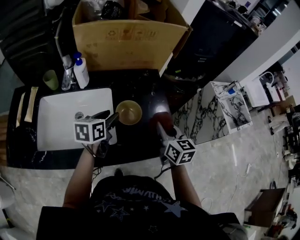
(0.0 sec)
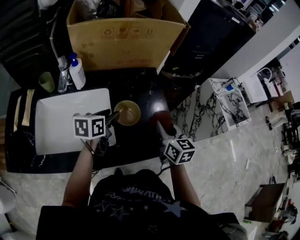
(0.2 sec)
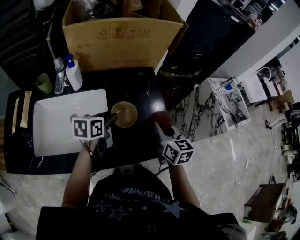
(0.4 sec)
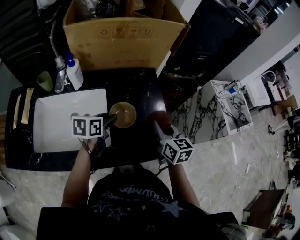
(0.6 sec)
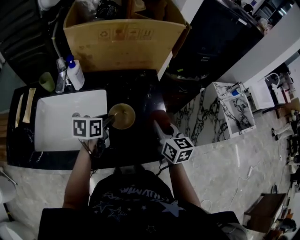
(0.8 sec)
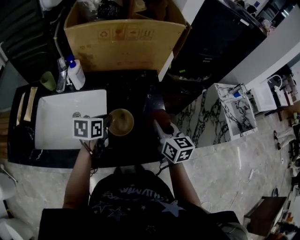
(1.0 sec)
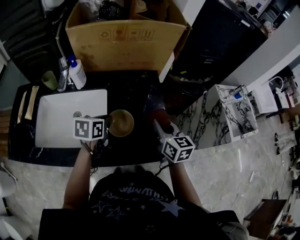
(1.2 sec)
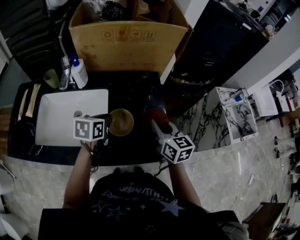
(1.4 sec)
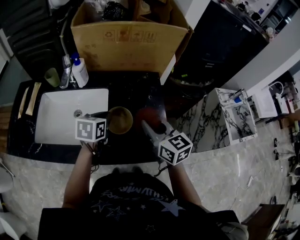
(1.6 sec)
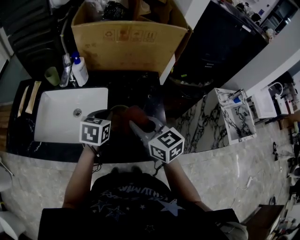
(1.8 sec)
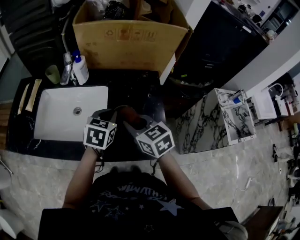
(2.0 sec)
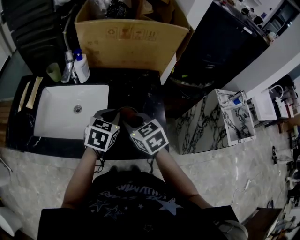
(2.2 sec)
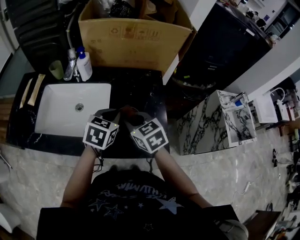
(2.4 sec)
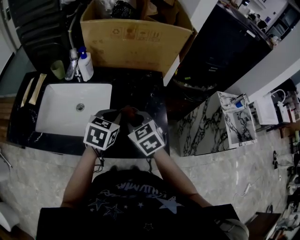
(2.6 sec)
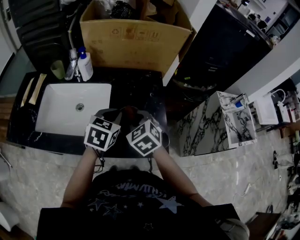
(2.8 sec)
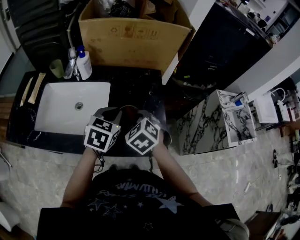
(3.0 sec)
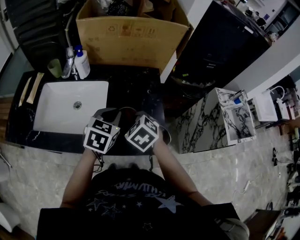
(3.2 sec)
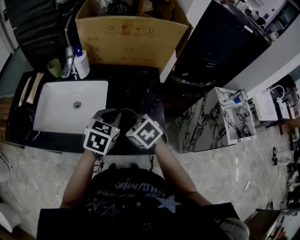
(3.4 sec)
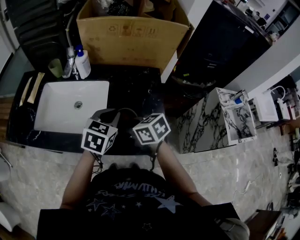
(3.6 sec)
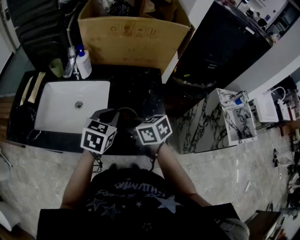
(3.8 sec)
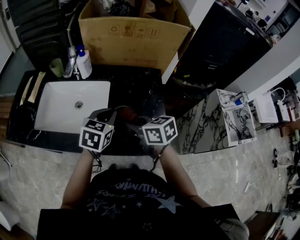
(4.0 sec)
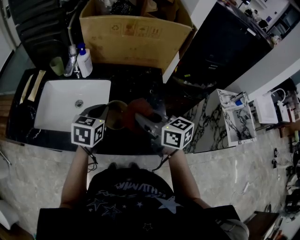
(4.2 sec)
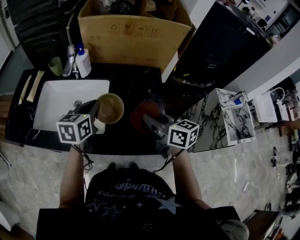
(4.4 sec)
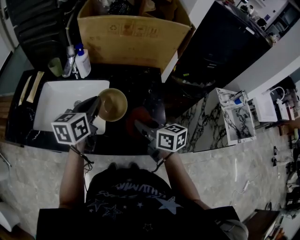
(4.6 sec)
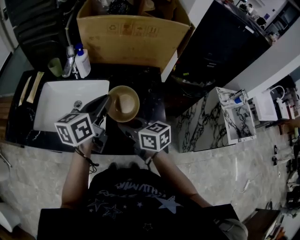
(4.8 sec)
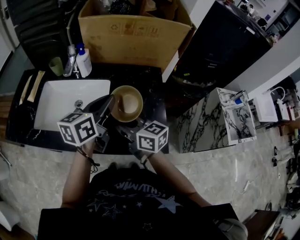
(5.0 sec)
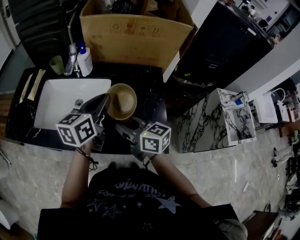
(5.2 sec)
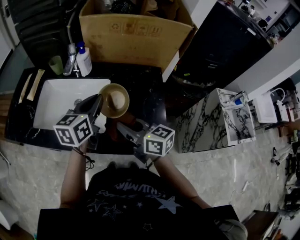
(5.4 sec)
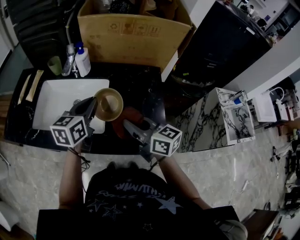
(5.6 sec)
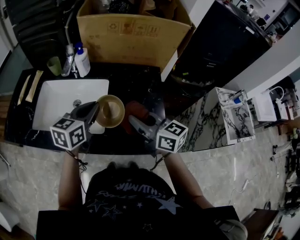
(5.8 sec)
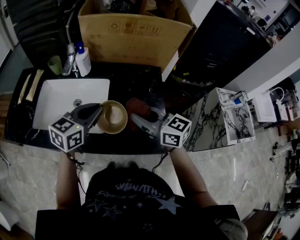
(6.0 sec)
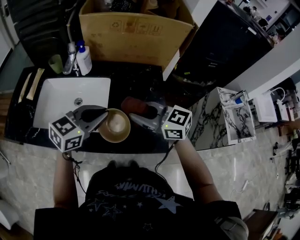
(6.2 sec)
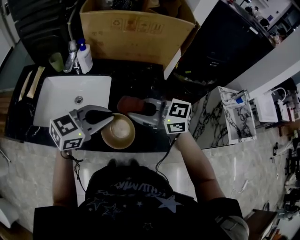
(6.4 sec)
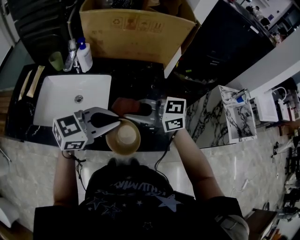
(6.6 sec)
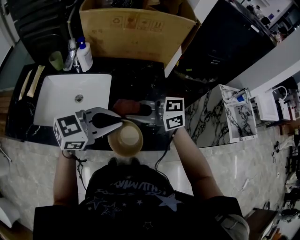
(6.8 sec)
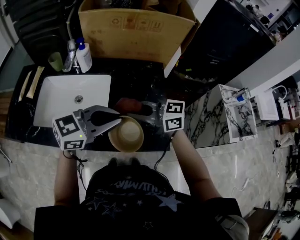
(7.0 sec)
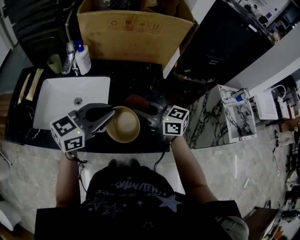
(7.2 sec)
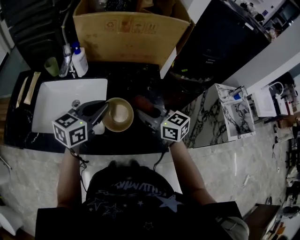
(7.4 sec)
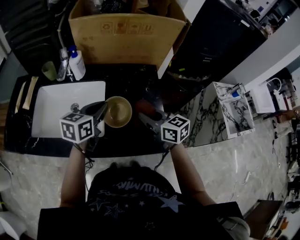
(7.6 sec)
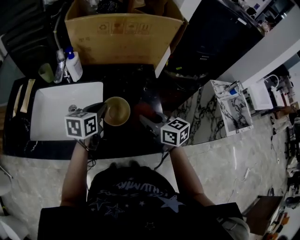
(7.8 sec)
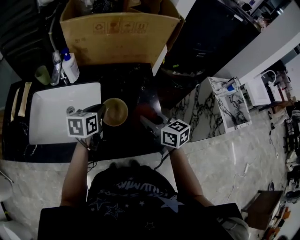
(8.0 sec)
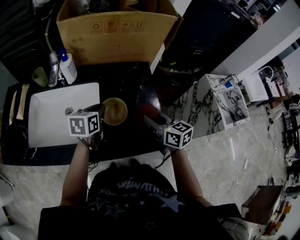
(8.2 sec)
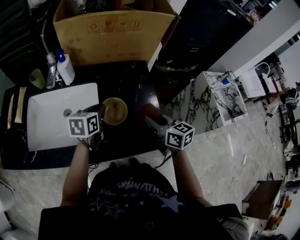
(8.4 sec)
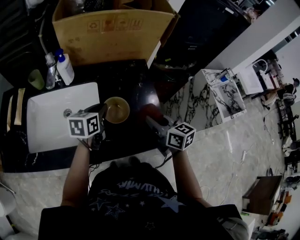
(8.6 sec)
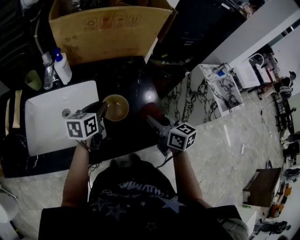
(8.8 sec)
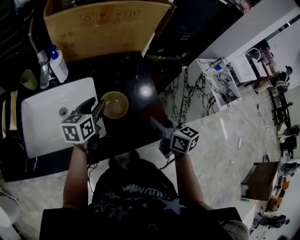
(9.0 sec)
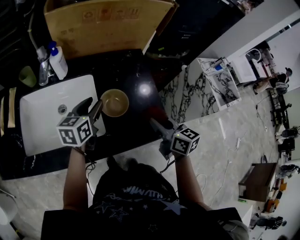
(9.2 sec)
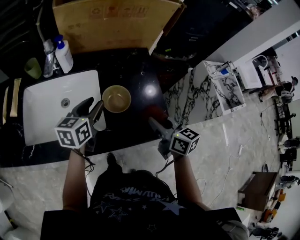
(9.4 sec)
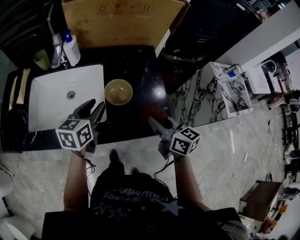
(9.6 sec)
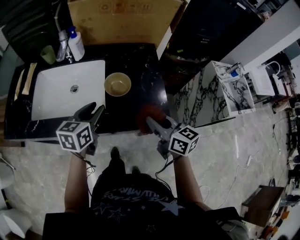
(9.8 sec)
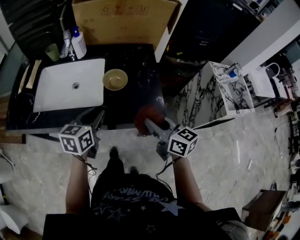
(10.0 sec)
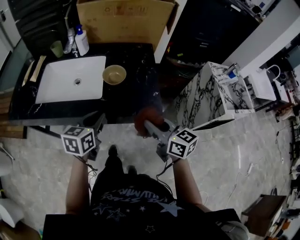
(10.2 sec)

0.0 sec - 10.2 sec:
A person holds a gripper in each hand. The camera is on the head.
0.0 sec - 1.4 sec: The left gripper closes its fingers.
1.4 sec - 3.0 sec: The left gripper heads upward, covering some 5 cm, and rotates approximately 20 degrees. The right gripper travels to the left by approximately 10 cm, and rolls counterclockwise, seen from behind, by roughly 50 degrees.
3.0 sec - 4.4 sec: The right gripper travels upward and to the right by approximately 10 cm, and tilts its fingers roughly 30 degrees upward, while the left gripper is displaced to the left by about 10 cm, and rotates roughly 20 degrees.
4.4 sec - 5.8 sec: The right gripper travels to the left by about 5 cm.
5.8 sec - 7.2 sec: The left gripper ends up approximately 10 cm from where it was, and swivels roughly 30 degrees.
7.2 sec - 8.8 sec: The right gripper moves to the right, approximately 5 cm, and turns by approximately 40 degrees, while the left gripper is displaced downward and forward by roughly 15 cm, and turns by about 30 degrees.
8.8 sec - 10.2 sec: The grippers both shift backward by approximately 20 cm. The left gripper opens, then closes once more.

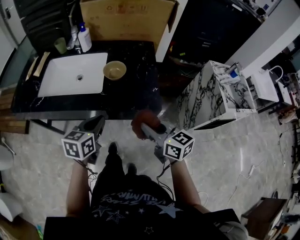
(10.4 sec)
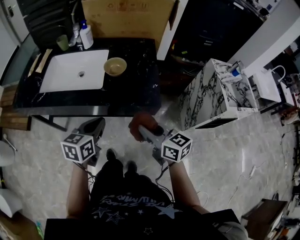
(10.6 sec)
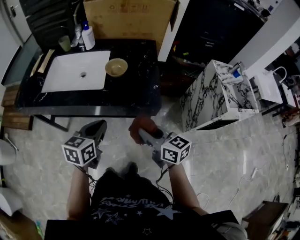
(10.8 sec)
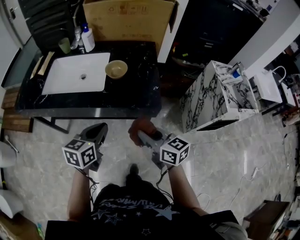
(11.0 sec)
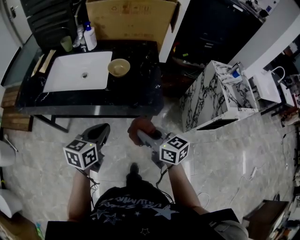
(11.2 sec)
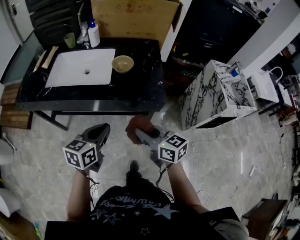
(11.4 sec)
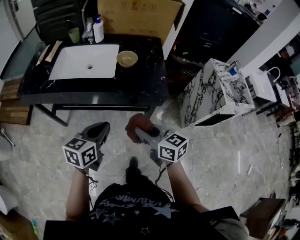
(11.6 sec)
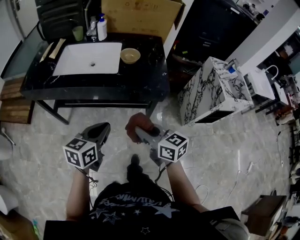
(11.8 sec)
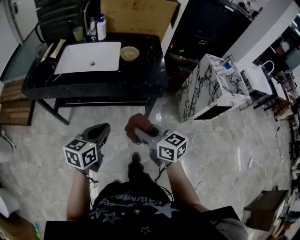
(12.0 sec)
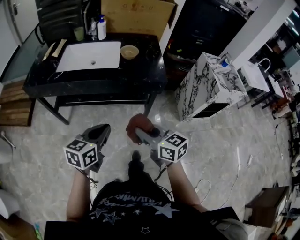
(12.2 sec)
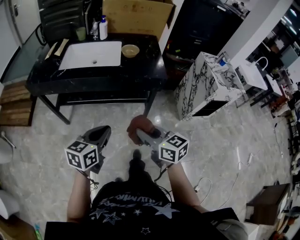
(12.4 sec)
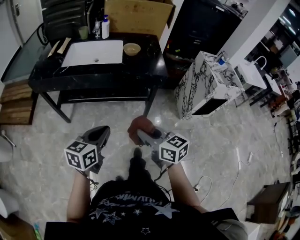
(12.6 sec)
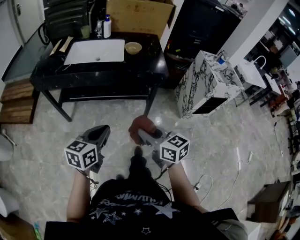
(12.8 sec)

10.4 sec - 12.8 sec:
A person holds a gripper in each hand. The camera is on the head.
10.4 sec - 11.6 sec: The left gripper goes approximately 10 cm backward. Meanwhile the right gripper is displaced backward and to the left by about 15 cm.
11.6 sec - 12.8 sec: The right gripper is displaced backward by roughly 20 cm. Meanwhile the left gripper shifts some 20 cm backward and to the left.

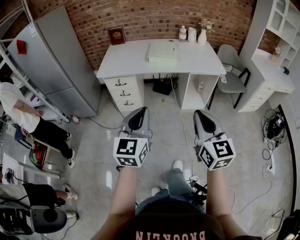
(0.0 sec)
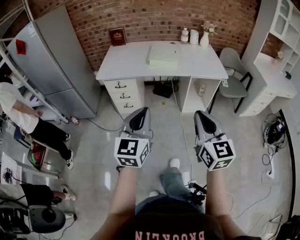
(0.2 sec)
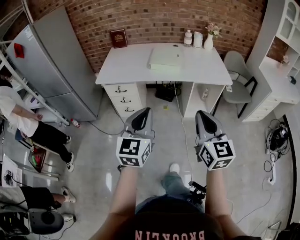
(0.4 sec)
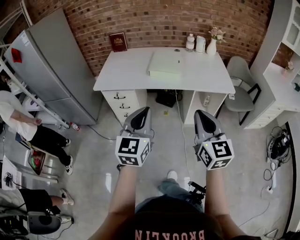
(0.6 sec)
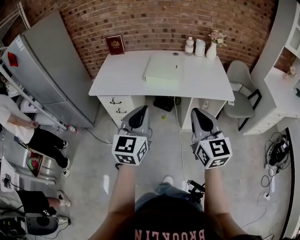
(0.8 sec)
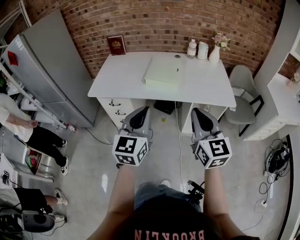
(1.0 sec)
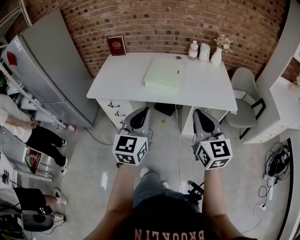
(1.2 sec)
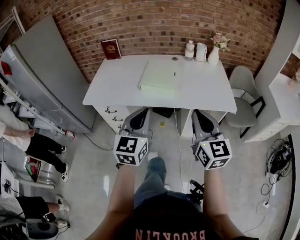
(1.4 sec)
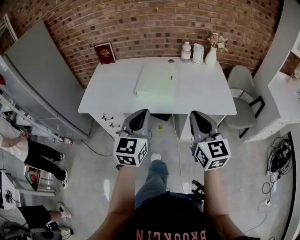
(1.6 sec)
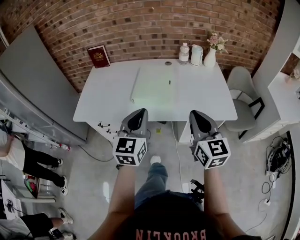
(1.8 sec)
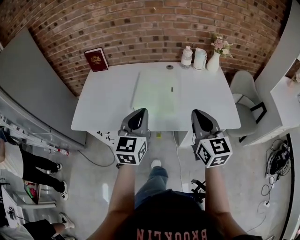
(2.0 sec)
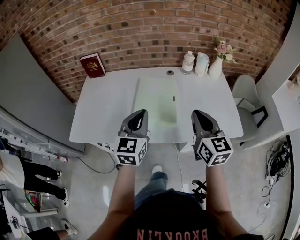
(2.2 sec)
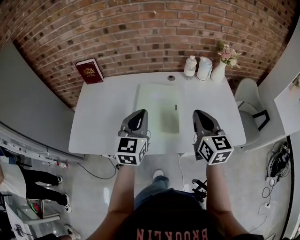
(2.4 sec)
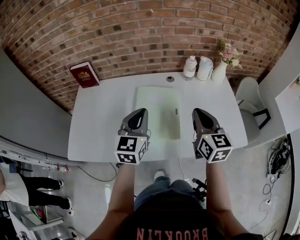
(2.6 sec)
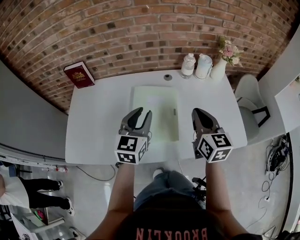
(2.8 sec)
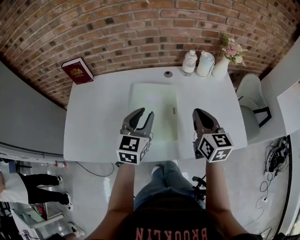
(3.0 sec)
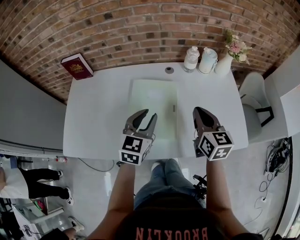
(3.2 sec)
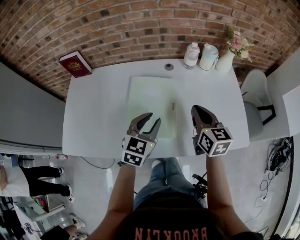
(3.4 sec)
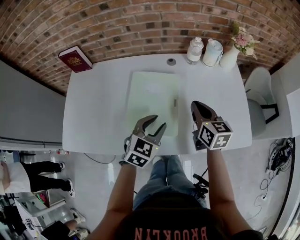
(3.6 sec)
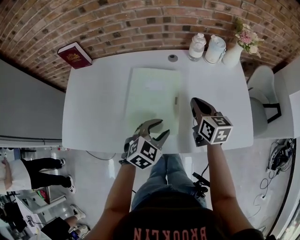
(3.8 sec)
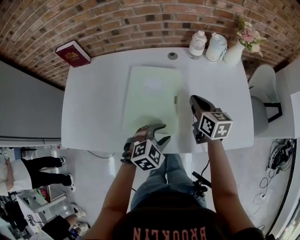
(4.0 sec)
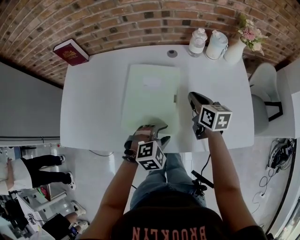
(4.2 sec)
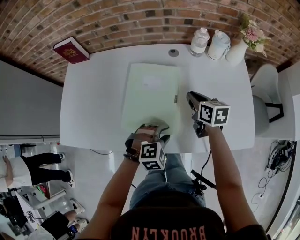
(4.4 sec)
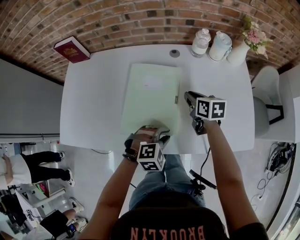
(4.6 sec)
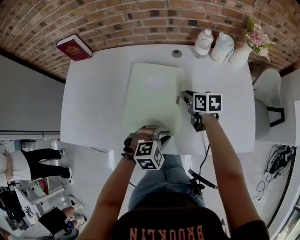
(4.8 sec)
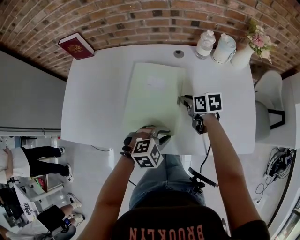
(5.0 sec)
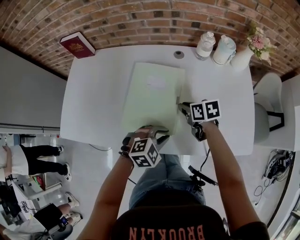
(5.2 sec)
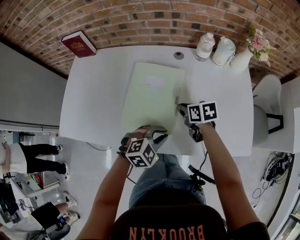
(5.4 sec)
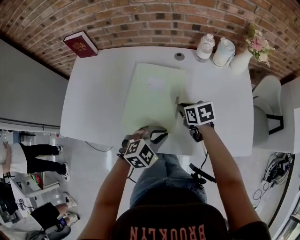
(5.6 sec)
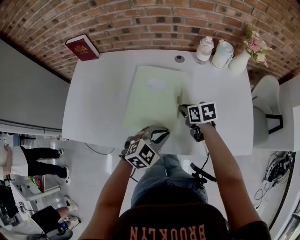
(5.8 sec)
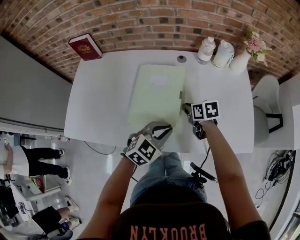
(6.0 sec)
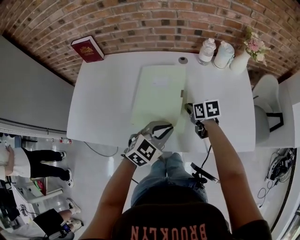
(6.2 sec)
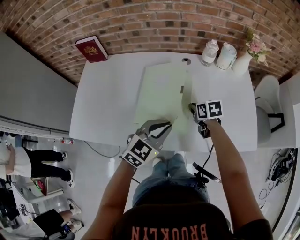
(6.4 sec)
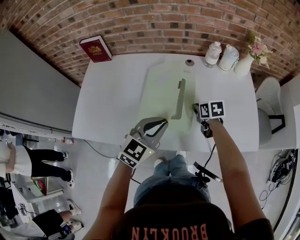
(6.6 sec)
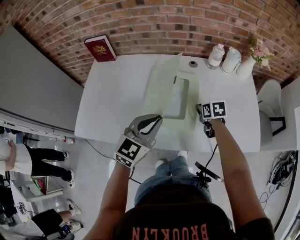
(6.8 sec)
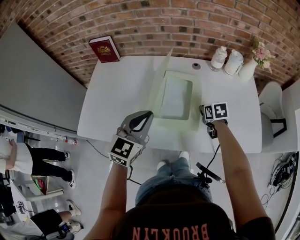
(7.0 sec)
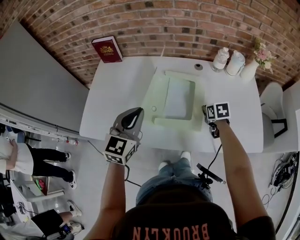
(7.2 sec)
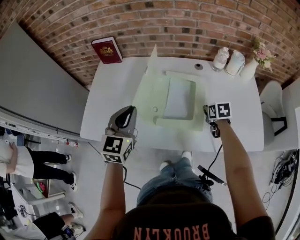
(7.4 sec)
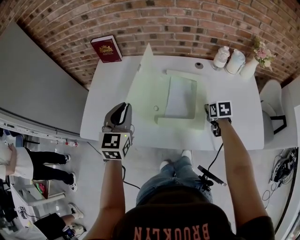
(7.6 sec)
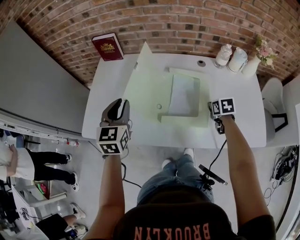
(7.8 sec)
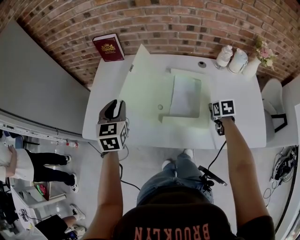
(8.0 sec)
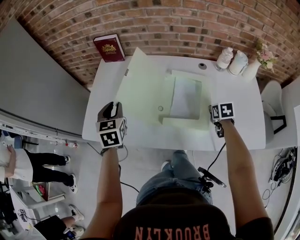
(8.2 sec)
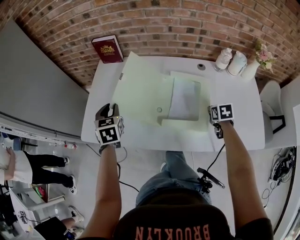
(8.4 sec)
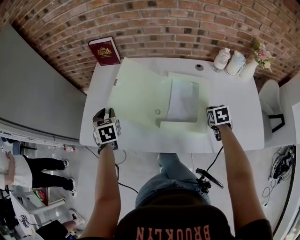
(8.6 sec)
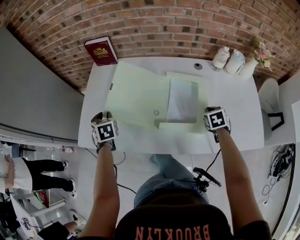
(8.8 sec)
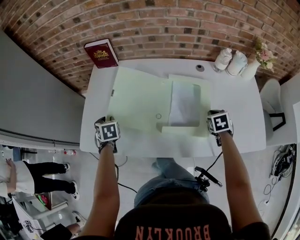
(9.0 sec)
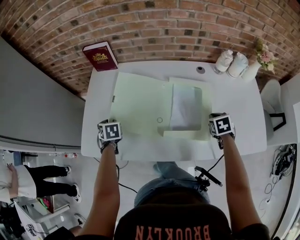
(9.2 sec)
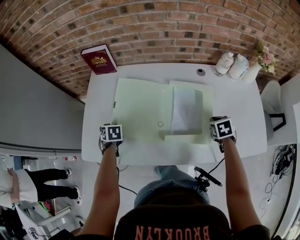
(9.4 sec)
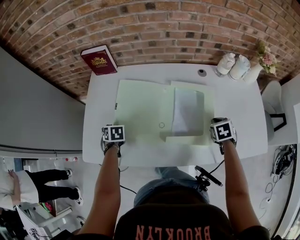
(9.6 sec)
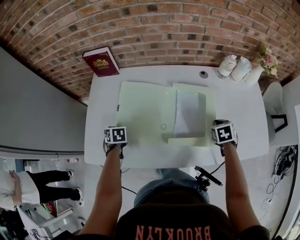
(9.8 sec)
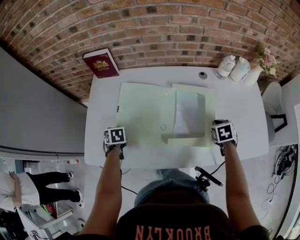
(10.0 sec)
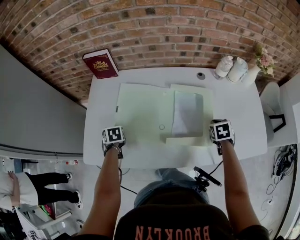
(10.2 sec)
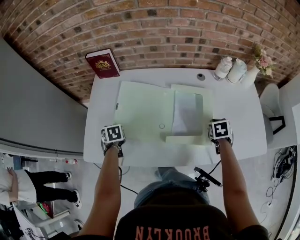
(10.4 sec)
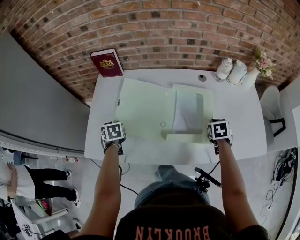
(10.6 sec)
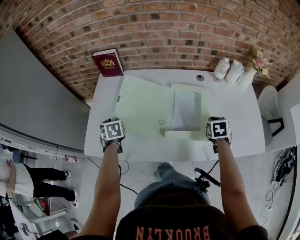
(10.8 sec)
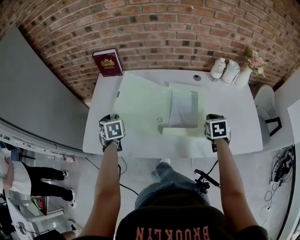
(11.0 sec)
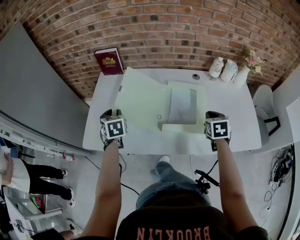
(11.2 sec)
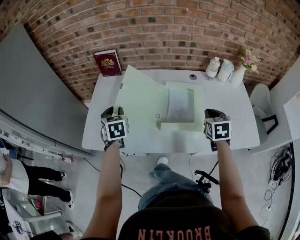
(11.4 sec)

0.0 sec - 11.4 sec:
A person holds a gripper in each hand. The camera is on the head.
0.0 sec - 1.4 sec: Both grippers move forward, roughly 35 cm.
1.4 sec - 2.8 sec: The grippers both shift forward by roughly 40 cm. The left gripper opens up.
2.8 sec - 4.2 sec: The left gripper heads downward and to the right, covering about 25 cm, and tips its fingers downward by some 40 degrees. Meanwhile the right gripper moves downward and forward, about 20 cm, and rotates roughly 30 degrees.
4.2 sec - 5.6 sec: The right gripper goes about 5 cm downward, and rotates approximately 30 degrees; the left gripper closes up.
5.6 sec - 7.2 sec: The left gripper goes some 30 cm to the left and upward, and turns by some 50 degrees.
7.2 sec - 8.6 sec: The left gripper shifts about 25 cm to the left, downward and forward, turns by about 40 degrees, and opens.
8.6 sec - 10.0 sec: The left gripper travels downward by approximately 15 cm, and turns by roughly 30 degrees.
10.0 sec - 11.4 sec: The two grippers go roughly 15 cm upward. The left gripper angles its fingers upward, by about 30 degrees, while the right gripper swivels approximately 20 degrees.
